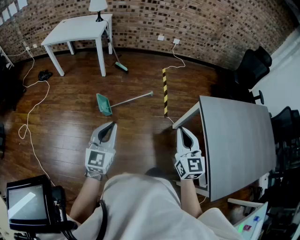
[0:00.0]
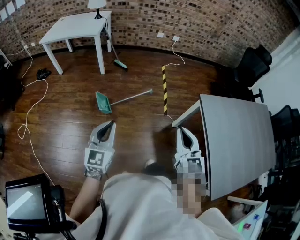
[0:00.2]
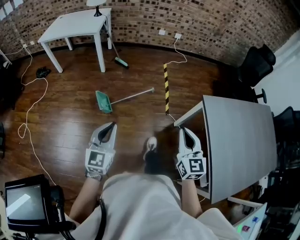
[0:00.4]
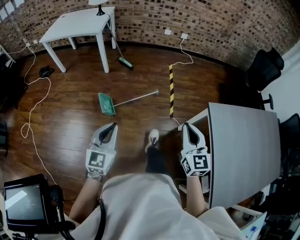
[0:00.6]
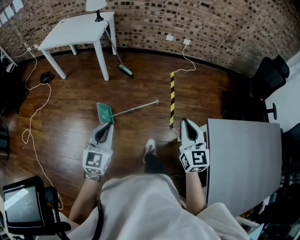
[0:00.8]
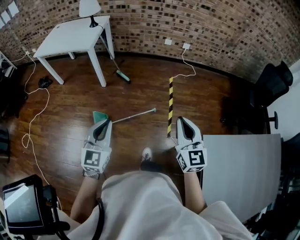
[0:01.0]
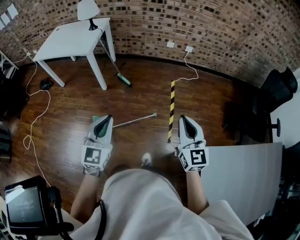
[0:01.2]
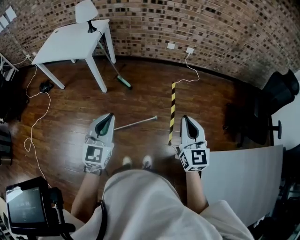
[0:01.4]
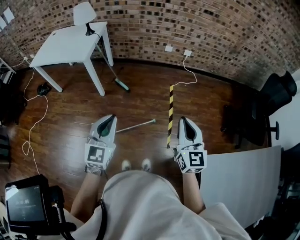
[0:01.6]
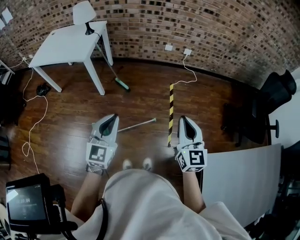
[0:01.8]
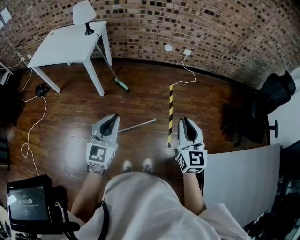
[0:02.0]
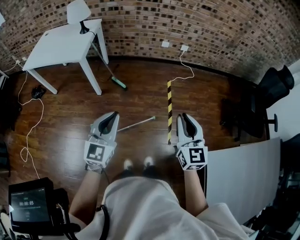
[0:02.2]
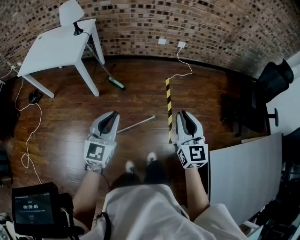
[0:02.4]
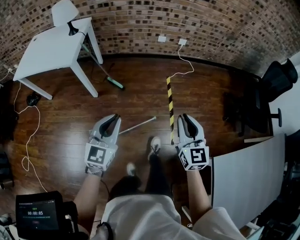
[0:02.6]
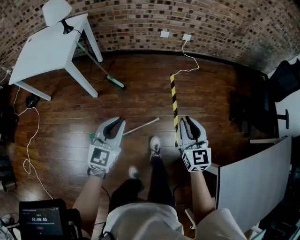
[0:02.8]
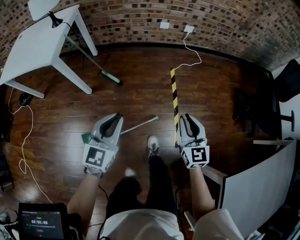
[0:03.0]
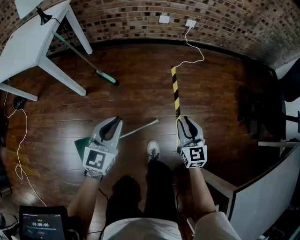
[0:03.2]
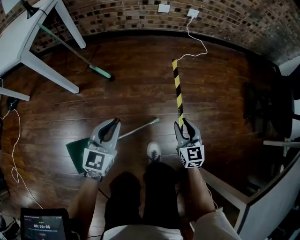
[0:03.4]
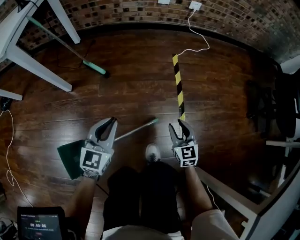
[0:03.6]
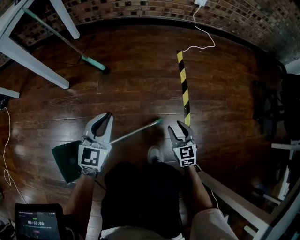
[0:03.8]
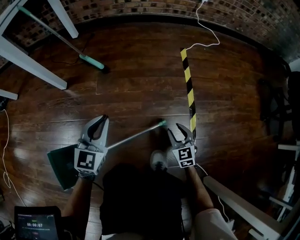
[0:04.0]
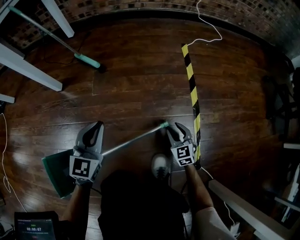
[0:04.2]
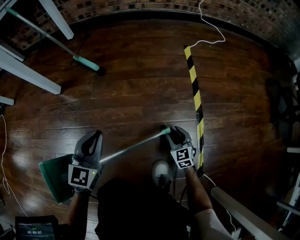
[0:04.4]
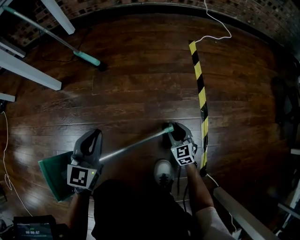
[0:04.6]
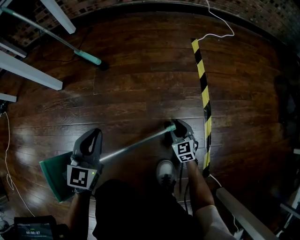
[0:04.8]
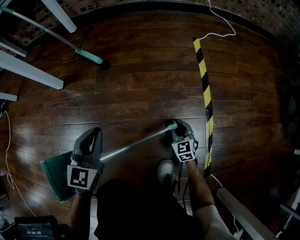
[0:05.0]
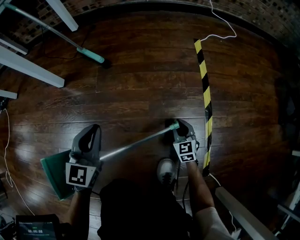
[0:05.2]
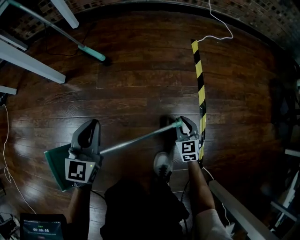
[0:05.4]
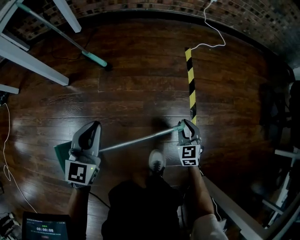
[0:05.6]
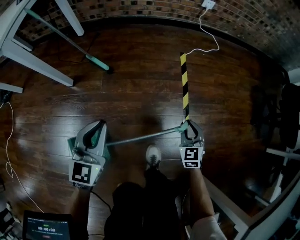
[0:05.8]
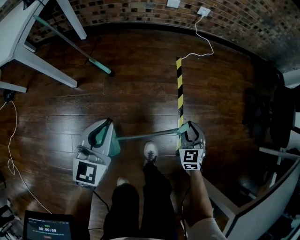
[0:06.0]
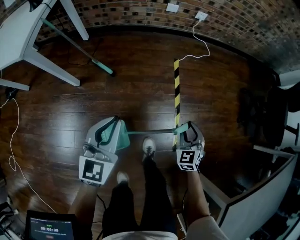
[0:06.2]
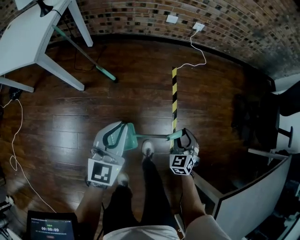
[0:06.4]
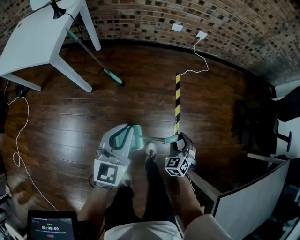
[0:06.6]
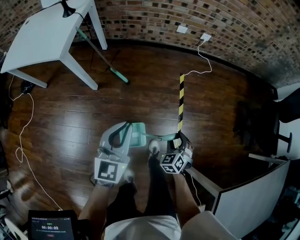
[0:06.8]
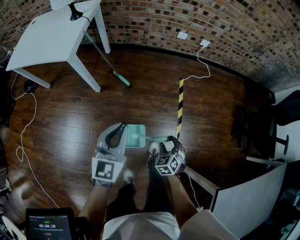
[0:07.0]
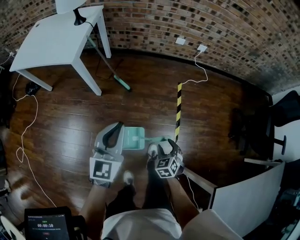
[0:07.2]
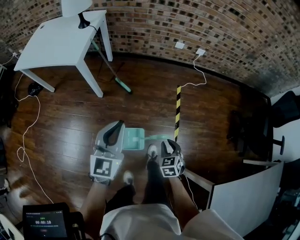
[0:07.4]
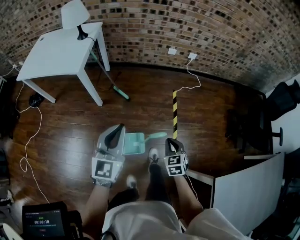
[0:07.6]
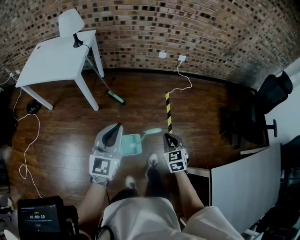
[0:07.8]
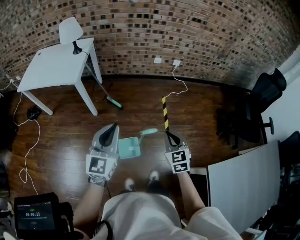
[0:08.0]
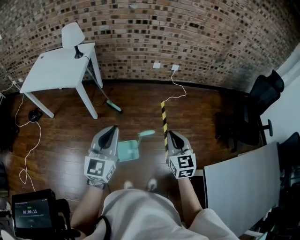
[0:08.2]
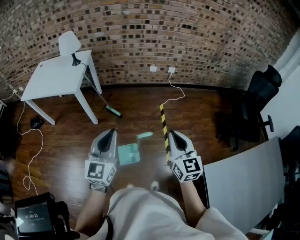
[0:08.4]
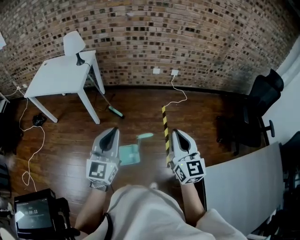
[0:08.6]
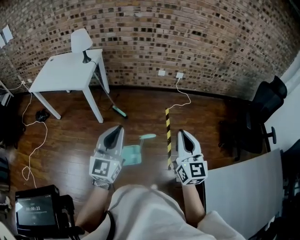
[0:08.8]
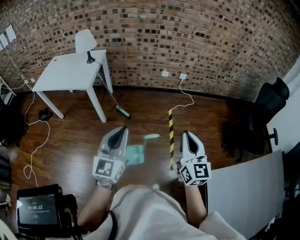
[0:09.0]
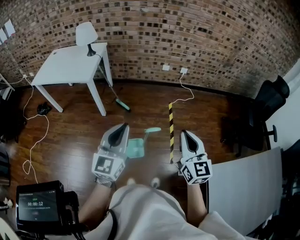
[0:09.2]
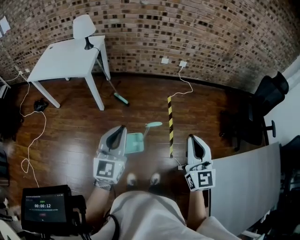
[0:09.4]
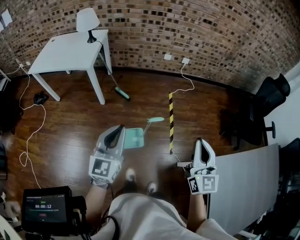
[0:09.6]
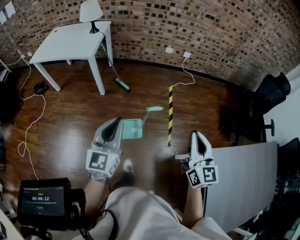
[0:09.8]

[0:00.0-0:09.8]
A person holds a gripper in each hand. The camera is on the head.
0:00.0 to 0:01.4: The pair of grippers is taken forward, about 50 cm.
0:01.4 to 0:02.8: The left gripper shifts roughly 20 cm forward and downward; the right gripper heads downward and forward, covering roughly 20 cm.
0:02.8 to 0:04.2: The two grippers go about 70 cm downward. The right gripper changes its angle by roughly 20 degrees, and opens.
0:04.2 to 0:05.6: Both grippers move upward, about 10 cm. The right gripper closes its fingers.
0:05.6 to 0:07.0: The two grippers go some 40 cm upward. The right gripper changes its angle by roughly 20 degrees, and opens up.
0:07.0 to 0:08.4: The right gripper is displaced upward by approximately 40 cm, tips its fingers upward by roughly 40 degrees, and closes its fingers, while the left gripper is displaced upward and backward by approximately 30 cm.
0:08.4 to 0:09.8: The grippers both shift backward by approximately 10 cm.

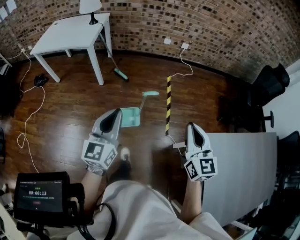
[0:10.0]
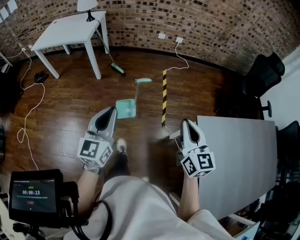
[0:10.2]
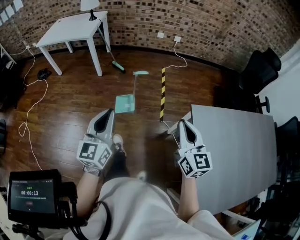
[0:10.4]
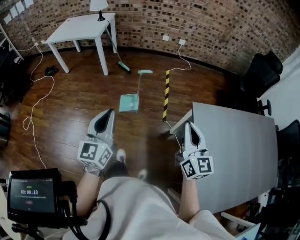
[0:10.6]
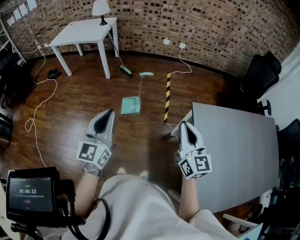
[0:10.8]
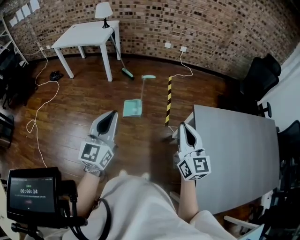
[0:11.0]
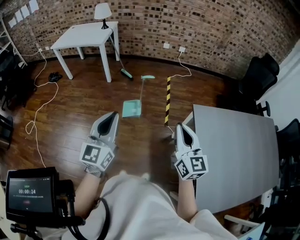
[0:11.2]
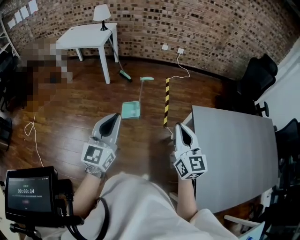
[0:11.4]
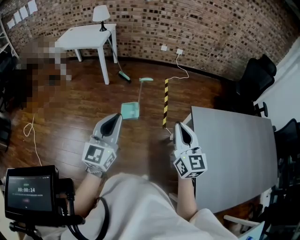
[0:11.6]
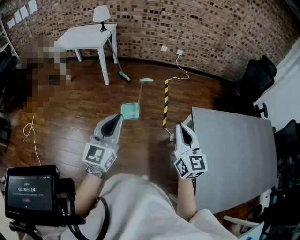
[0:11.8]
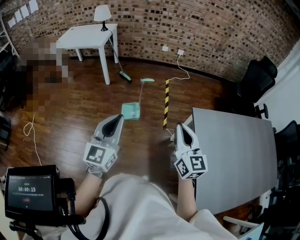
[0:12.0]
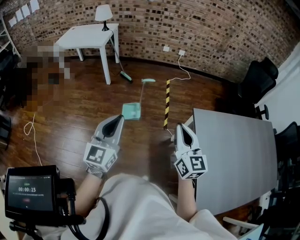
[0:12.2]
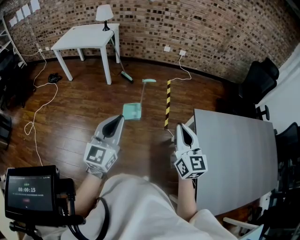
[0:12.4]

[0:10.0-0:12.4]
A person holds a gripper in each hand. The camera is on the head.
0:10.0 to 0:11.2: Both grippers move backward, roughly 30 cm.
0:11.2 to 0:12.4: The grippers move only a little.

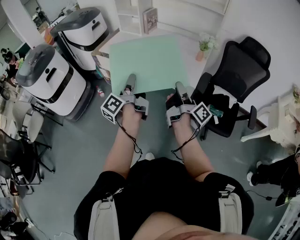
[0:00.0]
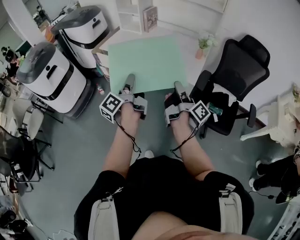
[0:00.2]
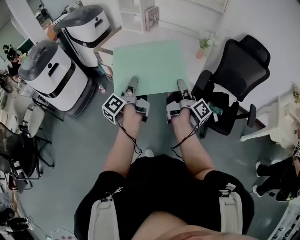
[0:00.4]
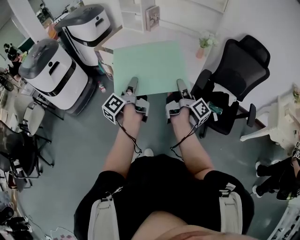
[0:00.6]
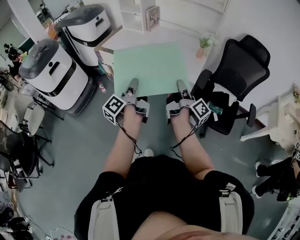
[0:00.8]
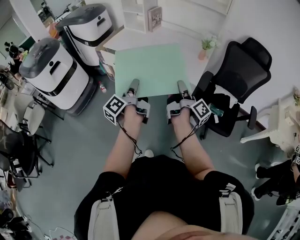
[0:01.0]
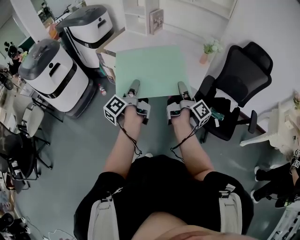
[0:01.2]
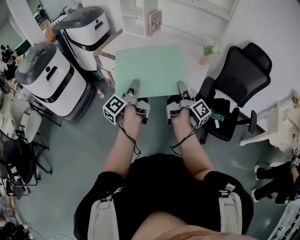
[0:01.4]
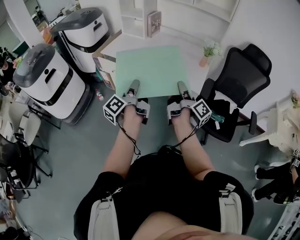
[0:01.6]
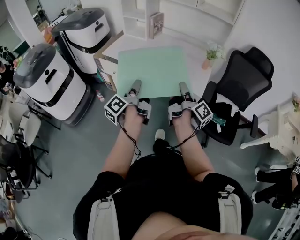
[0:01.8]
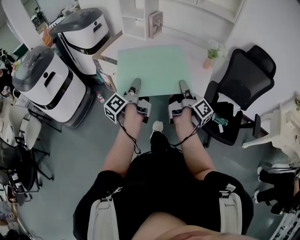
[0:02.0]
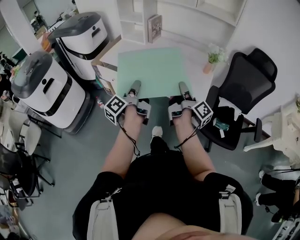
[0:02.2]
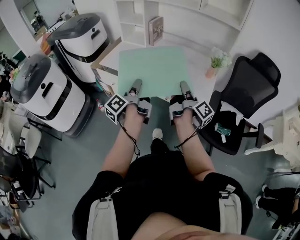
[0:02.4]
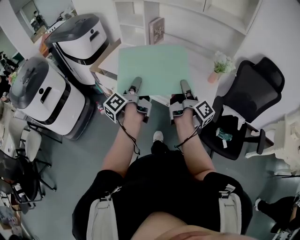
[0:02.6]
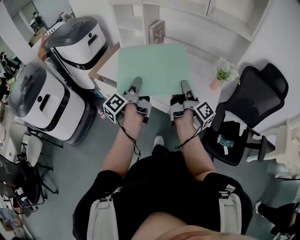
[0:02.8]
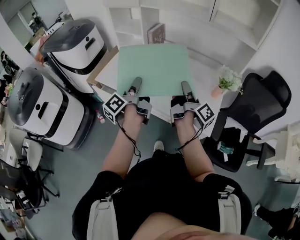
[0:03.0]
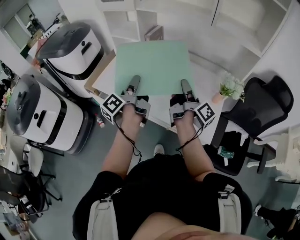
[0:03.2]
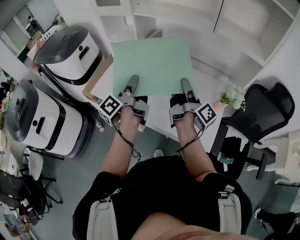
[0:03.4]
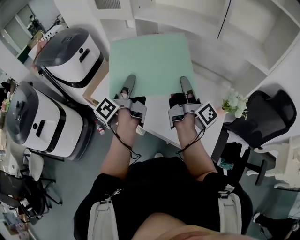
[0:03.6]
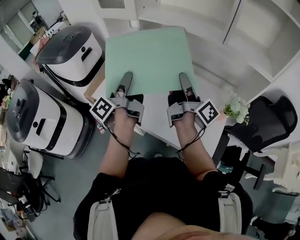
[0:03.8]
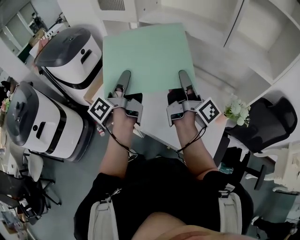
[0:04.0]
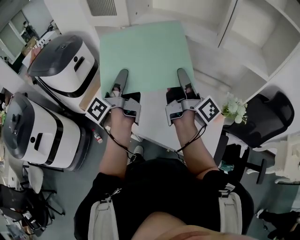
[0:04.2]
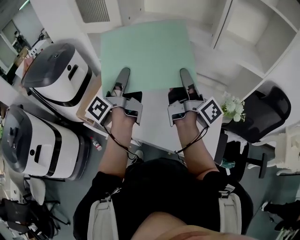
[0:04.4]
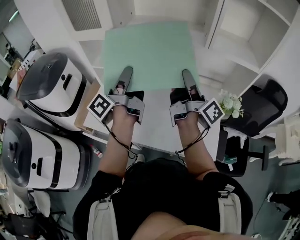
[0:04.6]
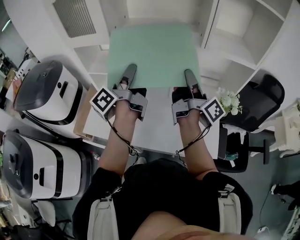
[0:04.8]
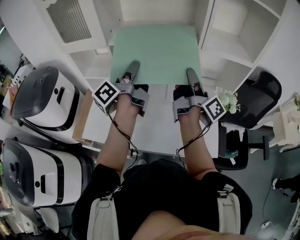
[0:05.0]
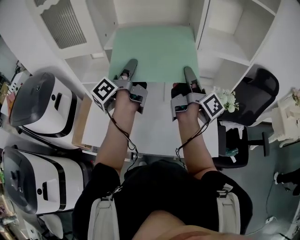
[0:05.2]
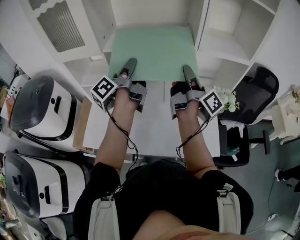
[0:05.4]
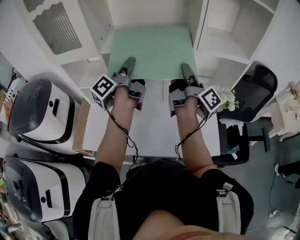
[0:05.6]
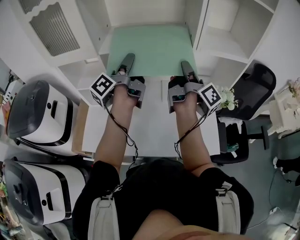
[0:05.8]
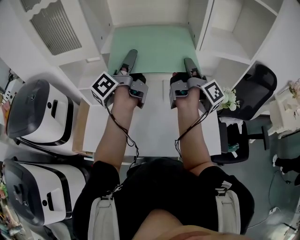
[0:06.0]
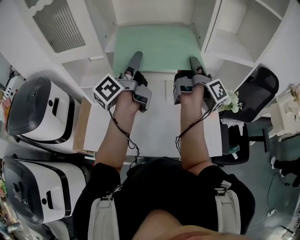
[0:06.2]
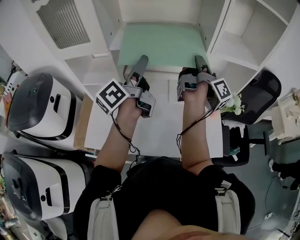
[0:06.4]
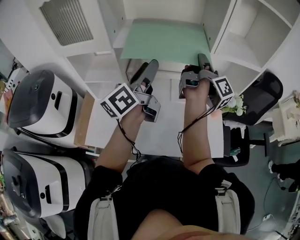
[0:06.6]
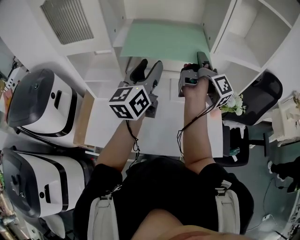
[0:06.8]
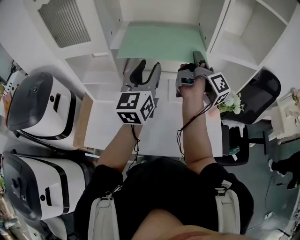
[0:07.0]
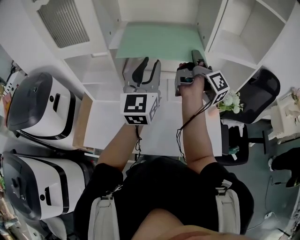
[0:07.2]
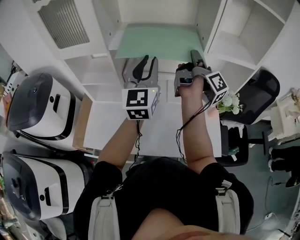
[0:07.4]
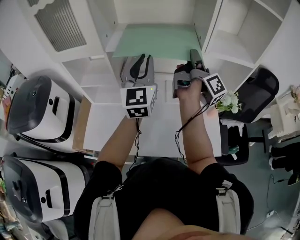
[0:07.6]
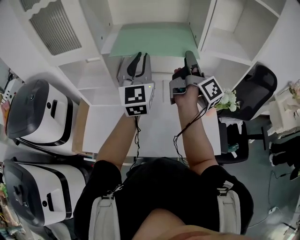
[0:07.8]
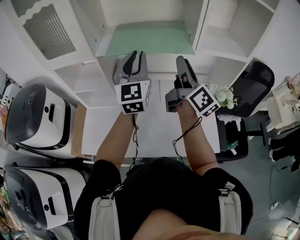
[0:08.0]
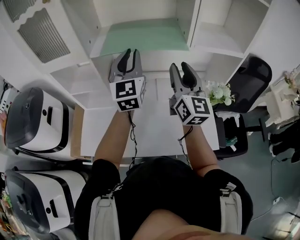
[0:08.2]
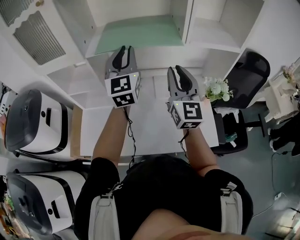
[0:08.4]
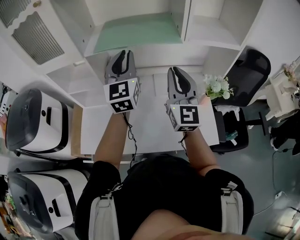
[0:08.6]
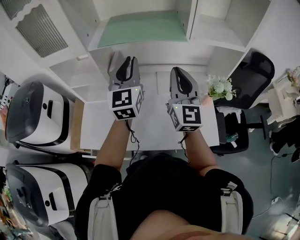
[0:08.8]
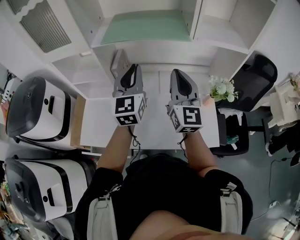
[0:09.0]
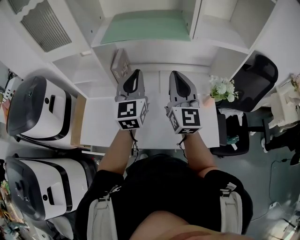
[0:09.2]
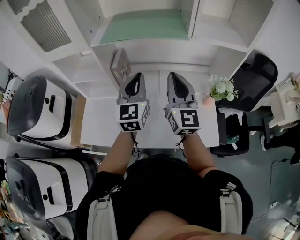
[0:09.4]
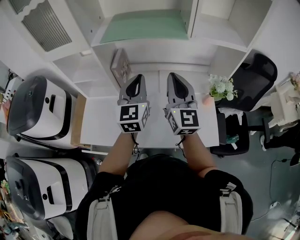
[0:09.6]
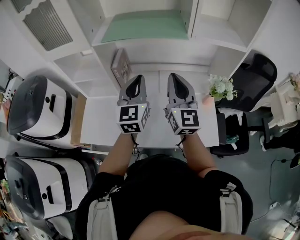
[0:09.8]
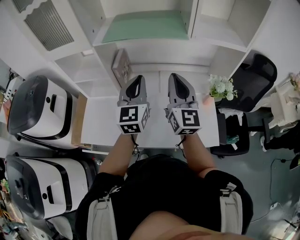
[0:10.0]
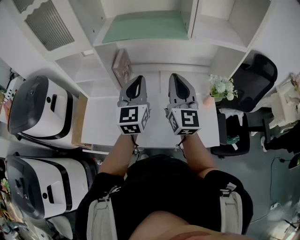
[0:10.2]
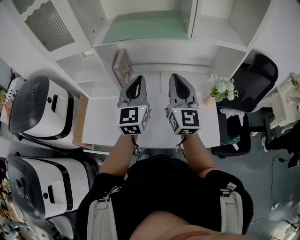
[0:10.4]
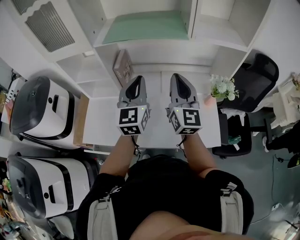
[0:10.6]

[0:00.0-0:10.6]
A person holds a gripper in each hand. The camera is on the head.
0:00.0 to 0:01.6: The left gripper ends up about 5 cm from where it was. The right gripper moves forward, about 5 cm.
0:01.6 to 0:03.0: The grippers both shift forward by some 35 cm.
0:03.0 to 0:04.6: Both grippers move forward and upward, approximately 25 cm. The left gripper turns by about 20 degrees.
0:04.6 to 0:06.0: The left gripper moves forward, some 15 cm, and opens its fingers, while the right gripper travels forward by some 10 cm, and rotates about 20 degrees.
0:06.0 to 0:07.6: The left gripper twists roughly 80 degrees clockwise, seen from behind, and closes up, while the right gripper opens its fingers.
0:07.6 to 0:09.0: The right gripper goes roughly 10 cm backward, rolls counterclockwise, seen from behind, by roughly 80 degrees, and closes up, while the left gripper is displaced downward by approximately 5 cm.
0:09.0 to 0:10.6: The left gripper shifts by some 5 cm.

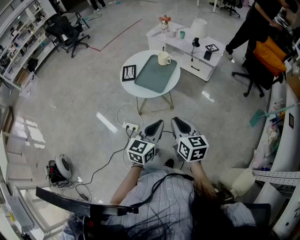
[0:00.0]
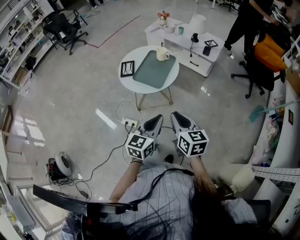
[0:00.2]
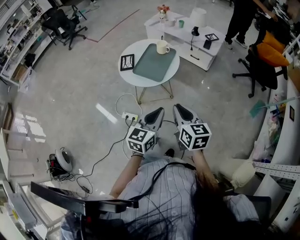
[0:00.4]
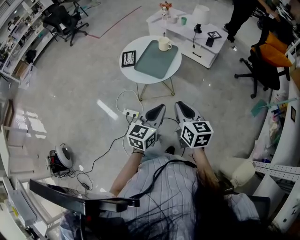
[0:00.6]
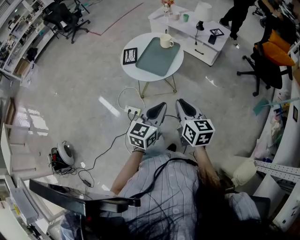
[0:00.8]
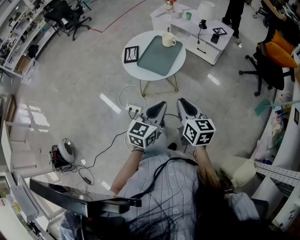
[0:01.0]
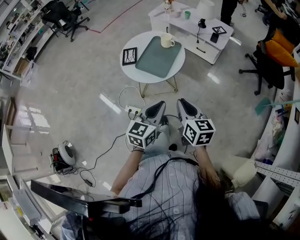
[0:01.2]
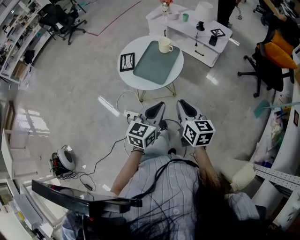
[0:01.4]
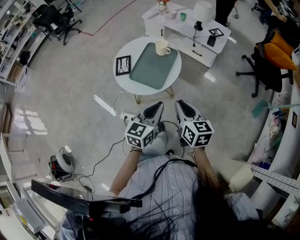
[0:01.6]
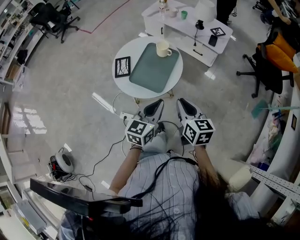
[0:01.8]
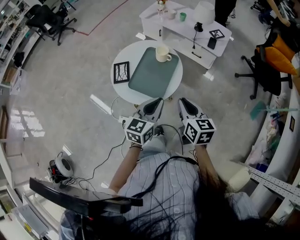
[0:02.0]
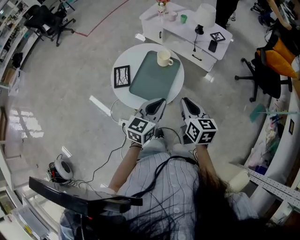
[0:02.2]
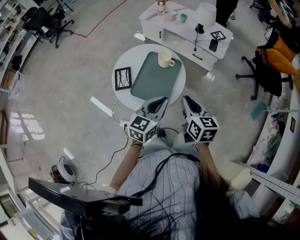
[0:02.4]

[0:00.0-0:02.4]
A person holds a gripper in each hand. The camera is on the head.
0:00.0 to 0:01.2: Both grippers move forward, some 5 cm.
0:01.2 to 0:02.4: Both grippers move forward, roughly 20 cm.
